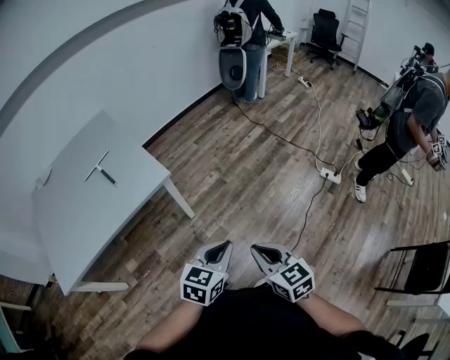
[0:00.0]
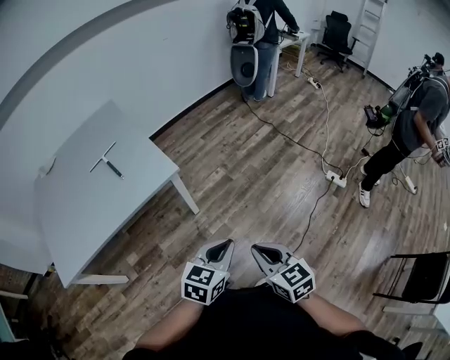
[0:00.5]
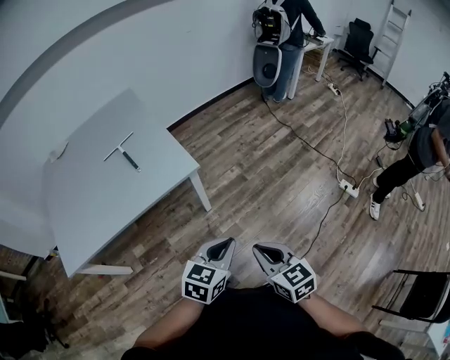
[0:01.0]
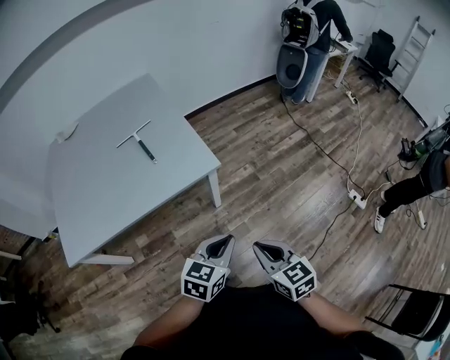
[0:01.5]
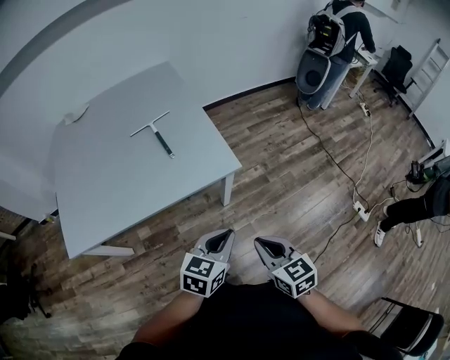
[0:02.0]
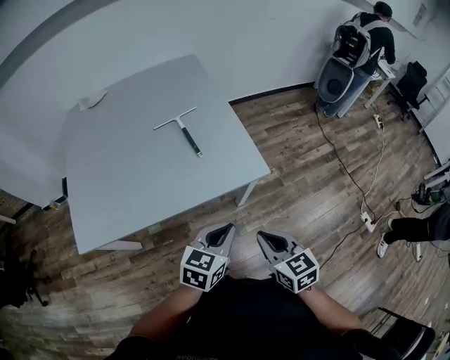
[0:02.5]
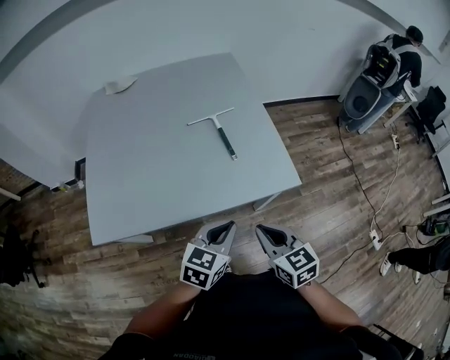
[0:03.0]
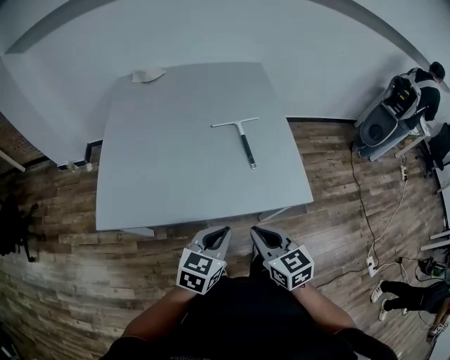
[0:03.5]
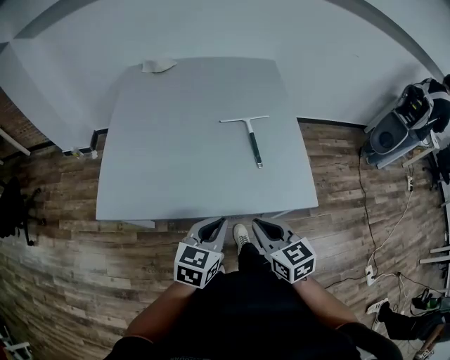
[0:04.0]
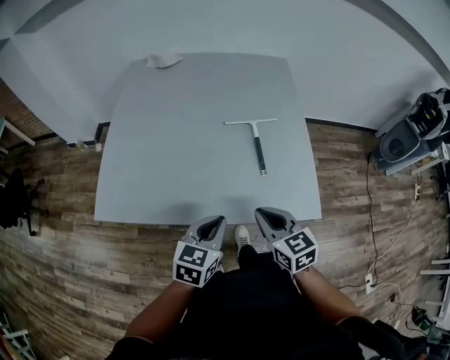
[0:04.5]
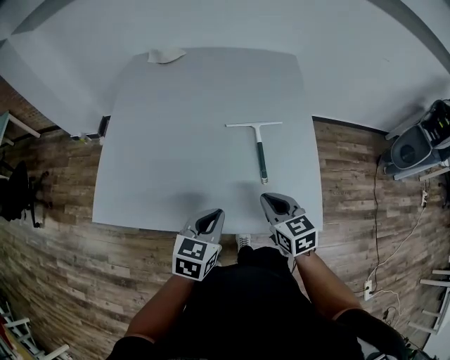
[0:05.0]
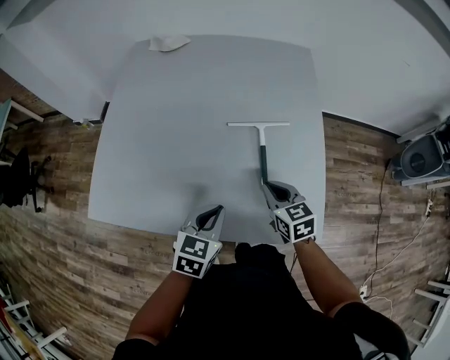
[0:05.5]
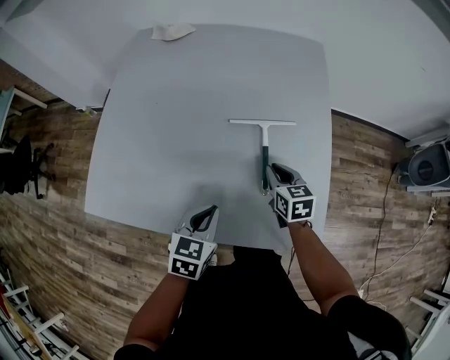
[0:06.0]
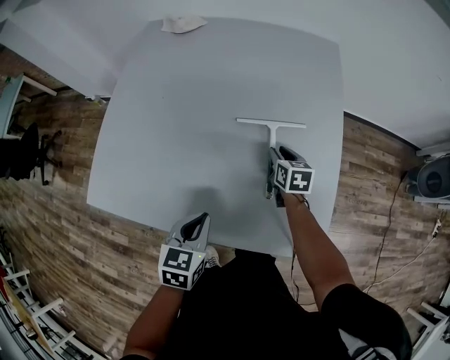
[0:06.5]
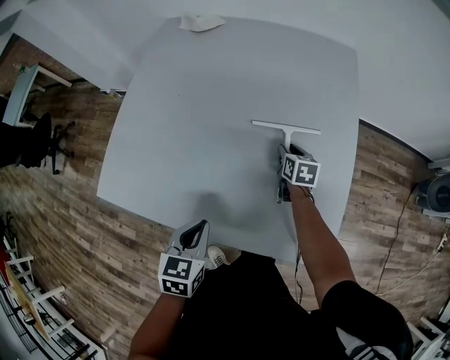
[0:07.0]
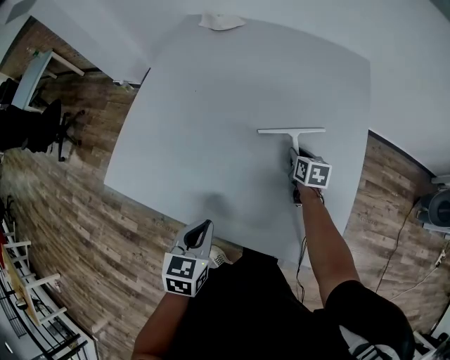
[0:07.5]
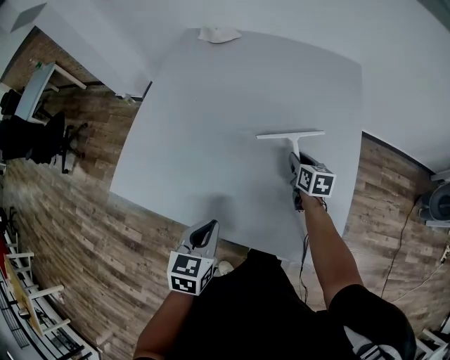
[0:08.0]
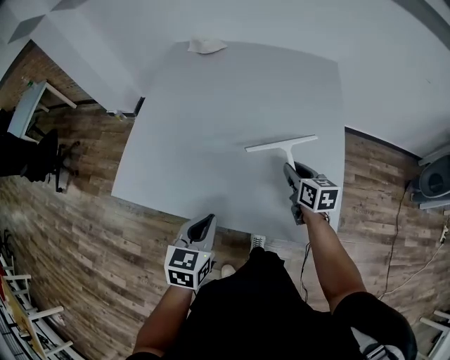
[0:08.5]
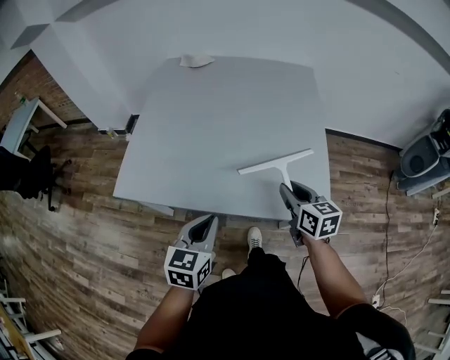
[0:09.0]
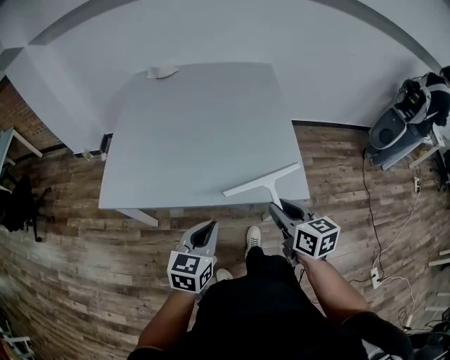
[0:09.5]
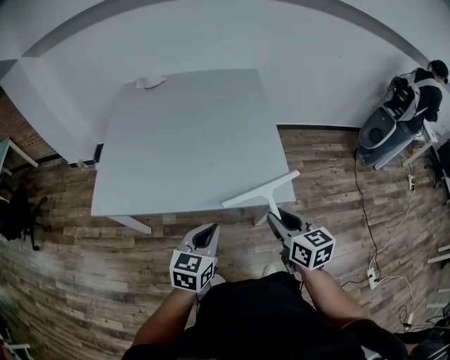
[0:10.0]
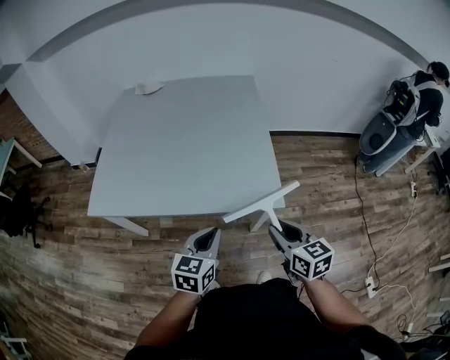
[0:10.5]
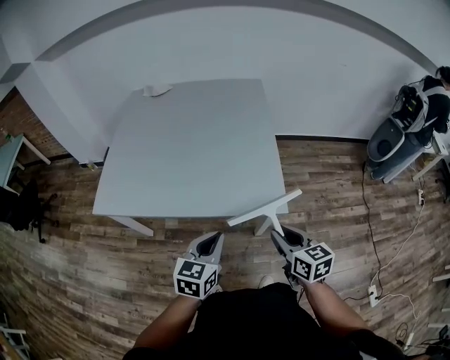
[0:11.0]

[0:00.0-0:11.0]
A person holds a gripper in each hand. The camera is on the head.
0:00.0 to 0:02.0: Both grippers travel together to the left and forward, roughly 25 cm.
0:02.0 to 0:03.5: The left gripper is displaced to the left by approximately 25 cm, while the right gripper shifts approximately 30 cm to the left and forward.
0:03.5 to 0:05.5: Both grippers move forward, about 25 cm.
0:05.5 to 0:07.5: The right gripper heads forward and downward, covering approximately 20 cm, and opens up, while the left gripper is displaced to the left by approximately 5 cm, and swivels about 20 degrees.
0:07.5 to 0:09.0: The left gripper shifts some 15 cm backward and upward, and changes its angle by about 20 degrees. Meanwhile the right gripper is displaced backward and upward by some 35 cm.
0:09.0 to 0:11.0: The left gripper moves to the right and backward, roughly 20 cm. Meanwhile the right gripper shifts approximately 25 cm backward and to the right.

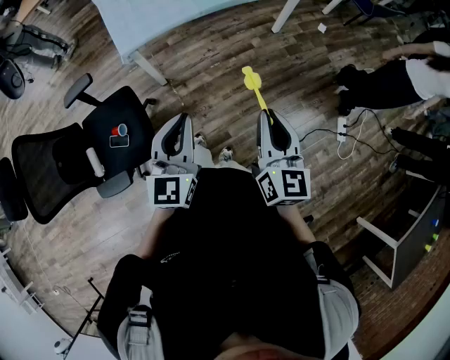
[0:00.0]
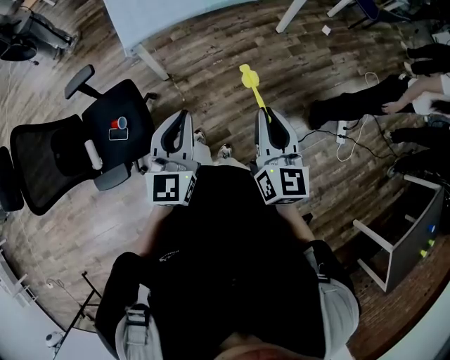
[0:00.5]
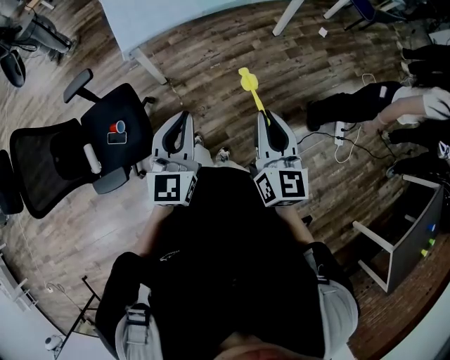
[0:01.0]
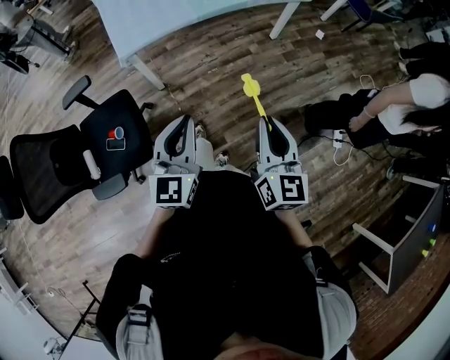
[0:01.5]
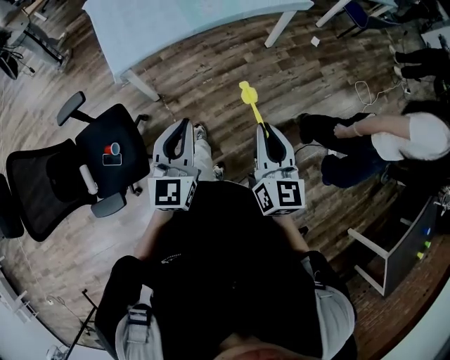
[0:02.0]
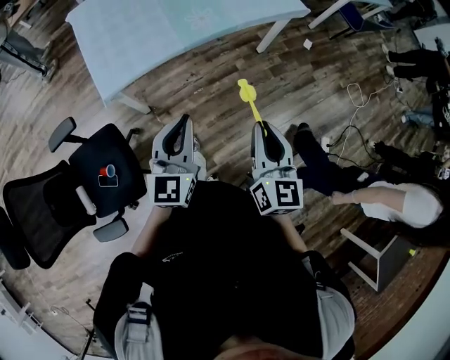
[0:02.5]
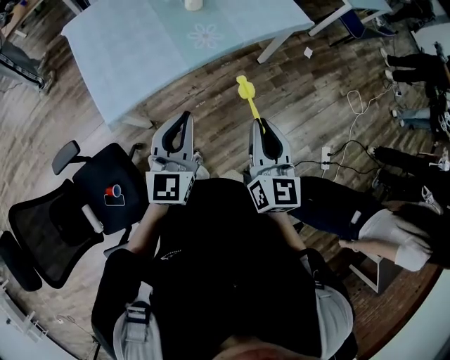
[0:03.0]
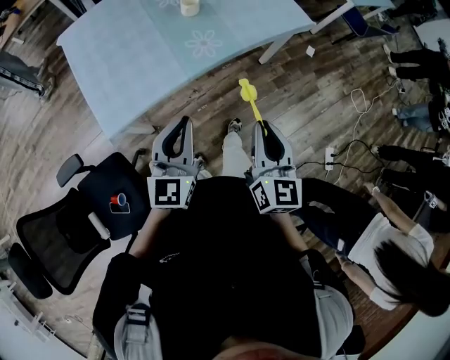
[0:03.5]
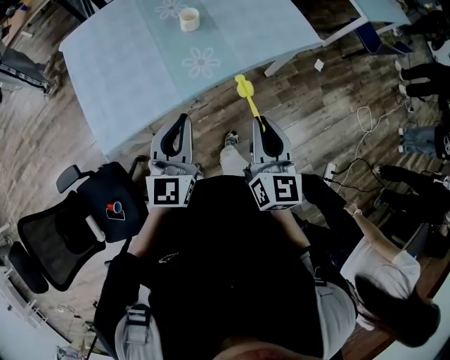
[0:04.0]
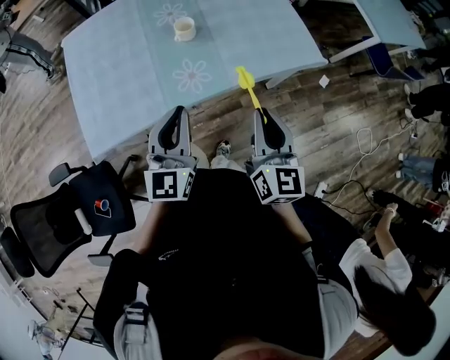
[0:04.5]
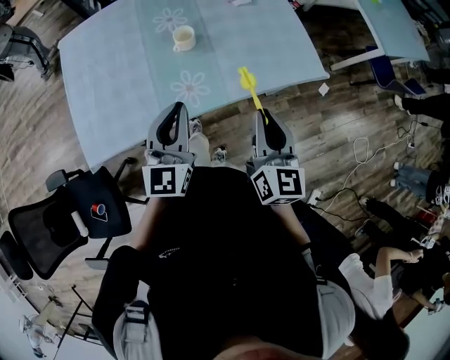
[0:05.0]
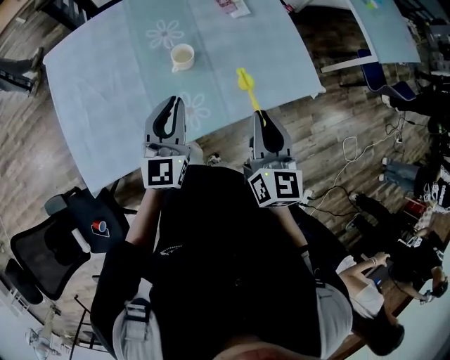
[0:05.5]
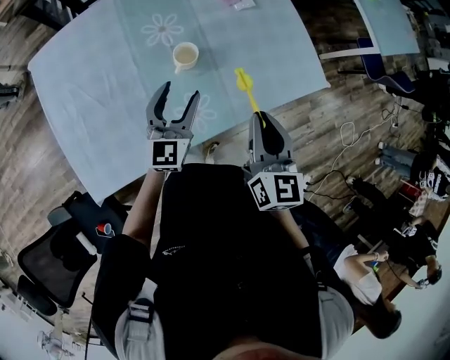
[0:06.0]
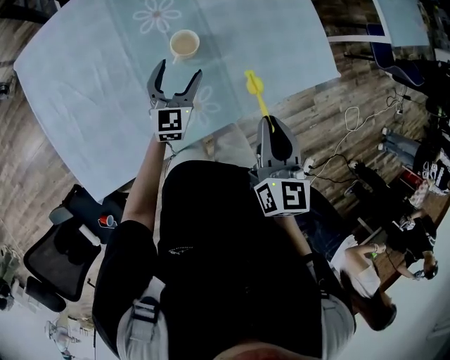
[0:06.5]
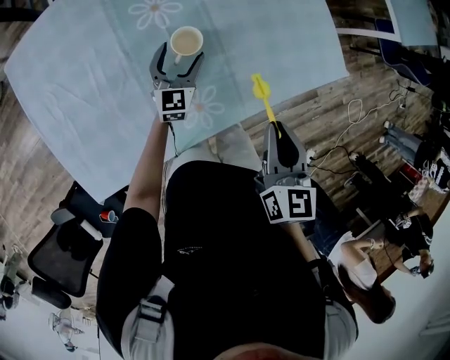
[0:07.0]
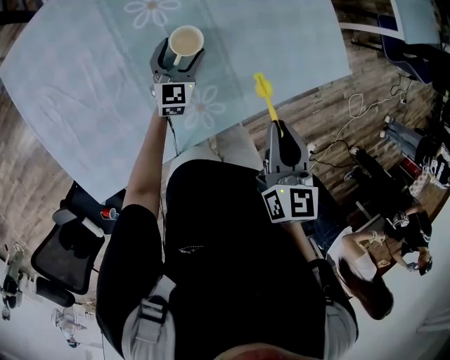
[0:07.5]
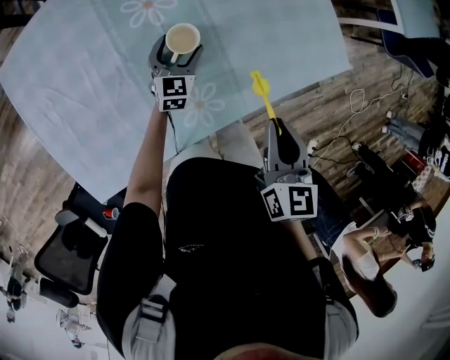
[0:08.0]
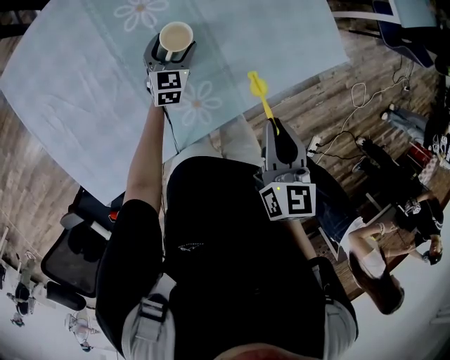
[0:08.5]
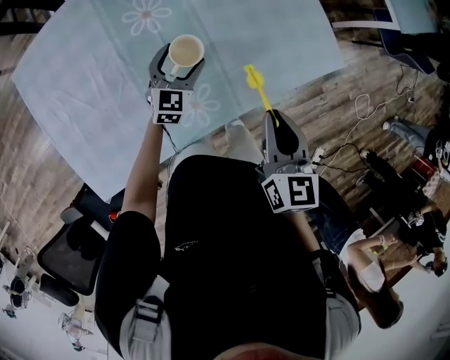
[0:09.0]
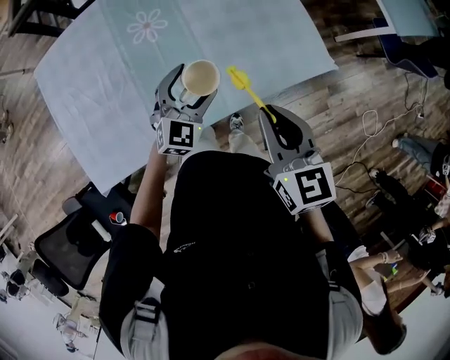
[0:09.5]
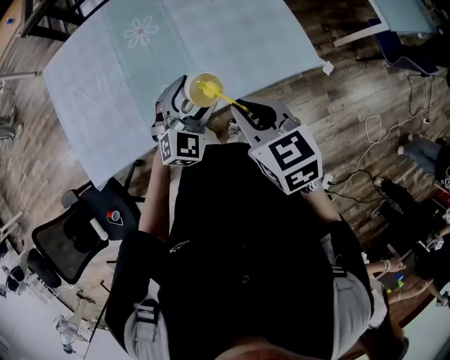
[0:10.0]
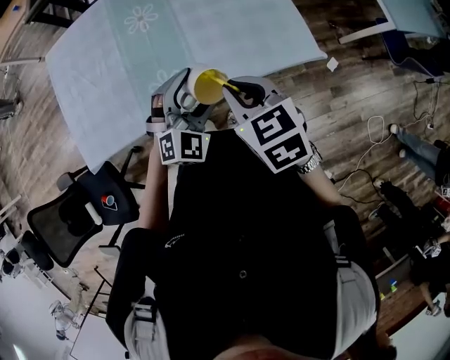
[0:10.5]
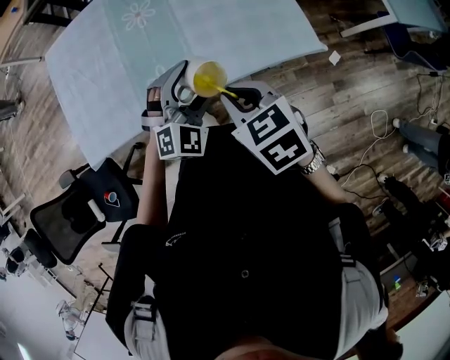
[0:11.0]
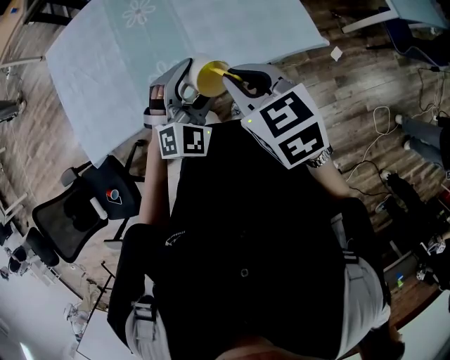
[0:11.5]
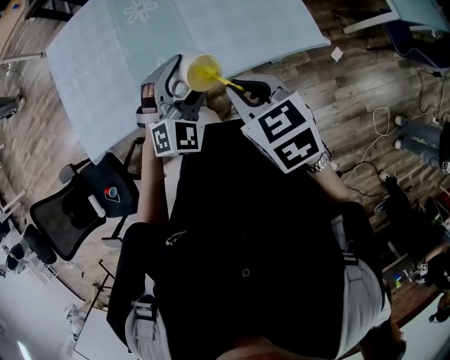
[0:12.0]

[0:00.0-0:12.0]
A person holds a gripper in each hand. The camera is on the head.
0:00.0 to 0:02.0: The grippers both shift forward by about 5 cm.
0:02.0 to 0:04.0: Both grippers move forward, about 40 cm.
0:04.0 to 0:06.0: The two grippers go about 30 cm forward. The left gripper opens up.
0:06.0 to 0:08.0: The right gripper shifts about 5 cm downward; the left gripper heads downward and forward, covering some 25 cm.
0:08.0 to 0:10.0: The right gripper heads to the right, upward and backward, covering roughly 15 cm, and swivels some 40 degrees; the left gripper goes roughly 30 cm upward, to the right and backward, and swivels roughly 30 degrees.
0:10.0 to 0:12.0: The left gripper ends up approximately 5 cm from where it was.

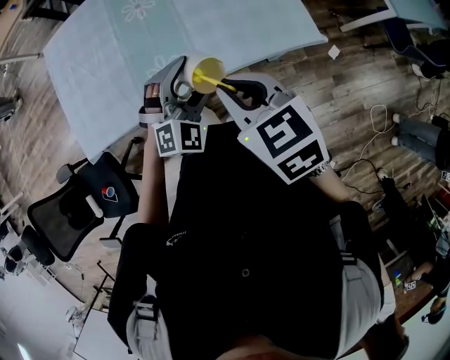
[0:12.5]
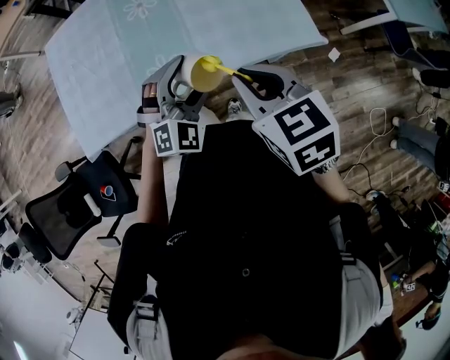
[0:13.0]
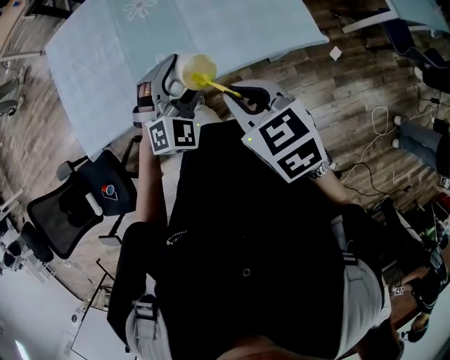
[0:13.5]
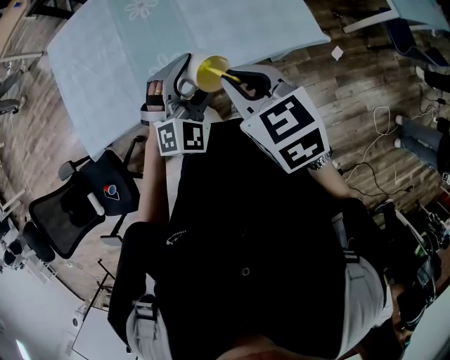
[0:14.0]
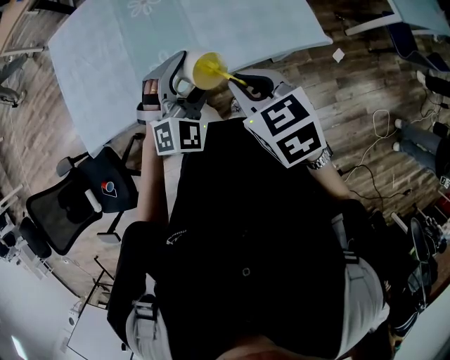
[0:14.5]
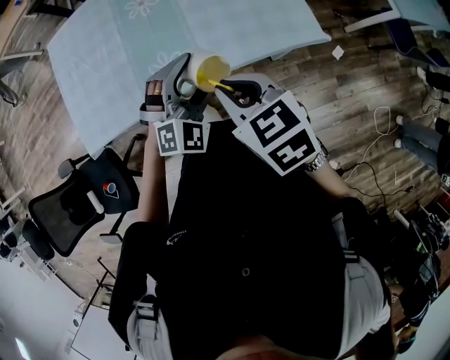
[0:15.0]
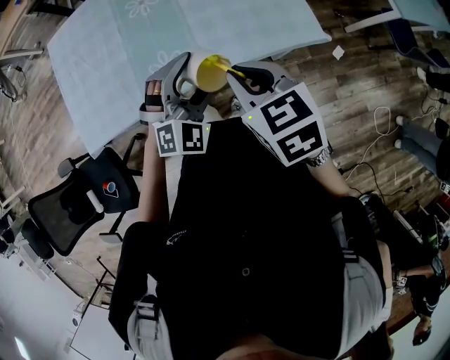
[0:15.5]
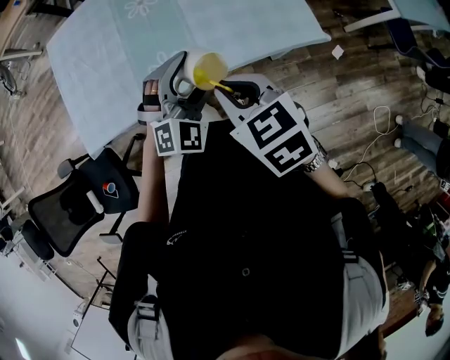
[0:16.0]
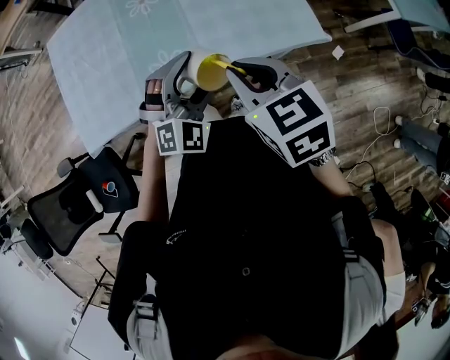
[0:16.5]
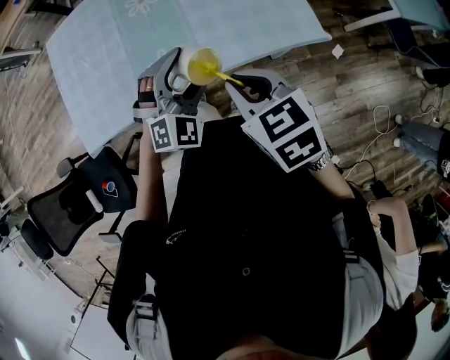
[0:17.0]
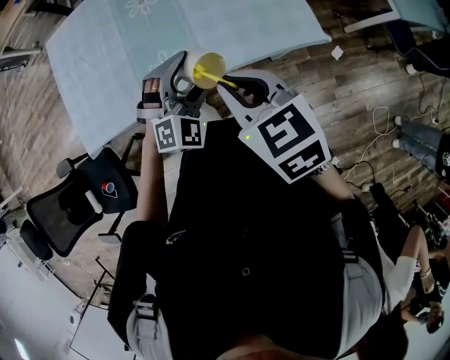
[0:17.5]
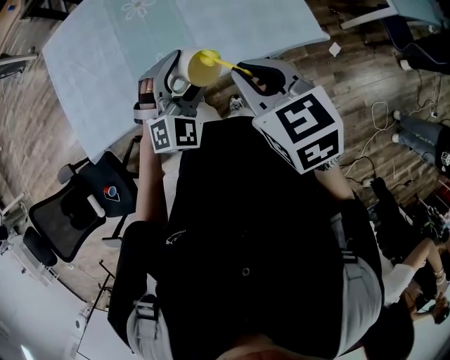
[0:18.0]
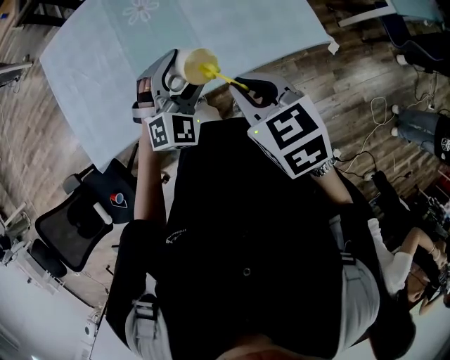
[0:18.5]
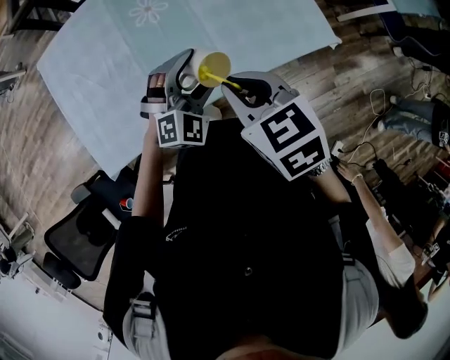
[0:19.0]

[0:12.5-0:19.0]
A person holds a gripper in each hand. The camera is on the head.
0:12.5 to 0:17.0: The grippers move only a little.
0:17.0 to 0:19.0: The right gripper heads to the left and forward, covering roughly 15 cm. Meanwhile the left gripper goes approximately 10 cm forward and to the left.
